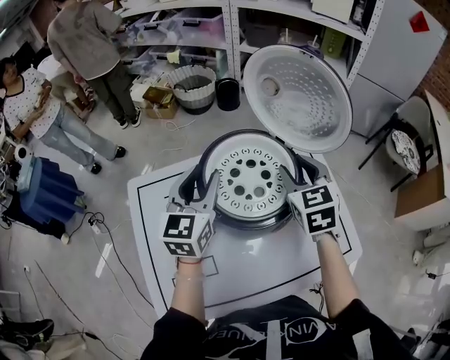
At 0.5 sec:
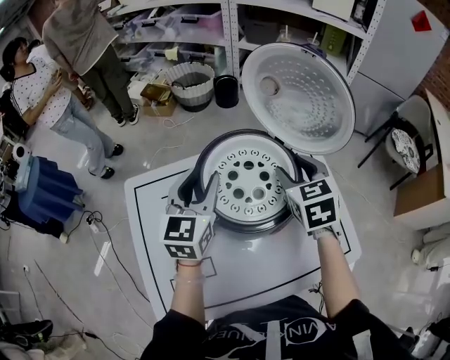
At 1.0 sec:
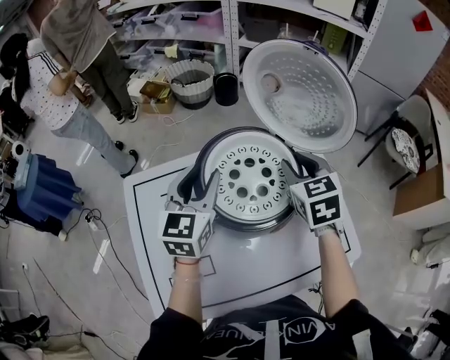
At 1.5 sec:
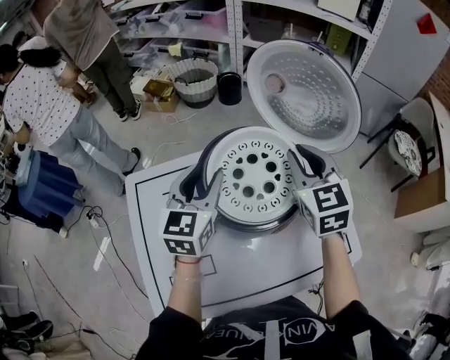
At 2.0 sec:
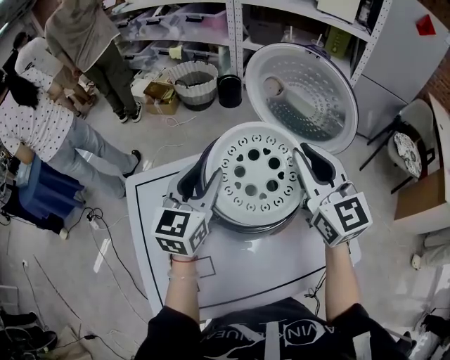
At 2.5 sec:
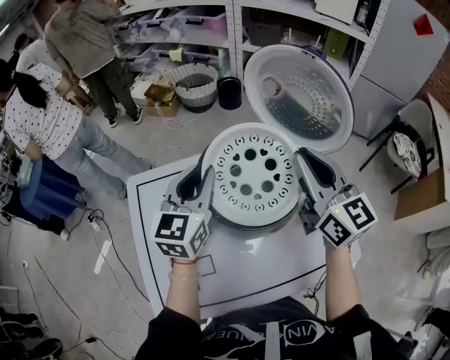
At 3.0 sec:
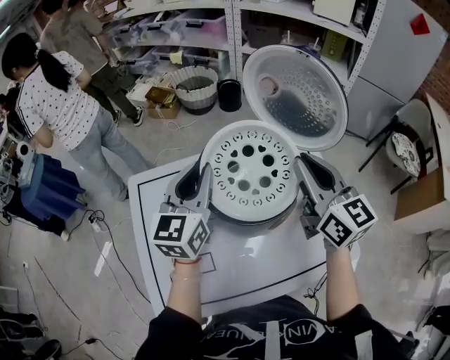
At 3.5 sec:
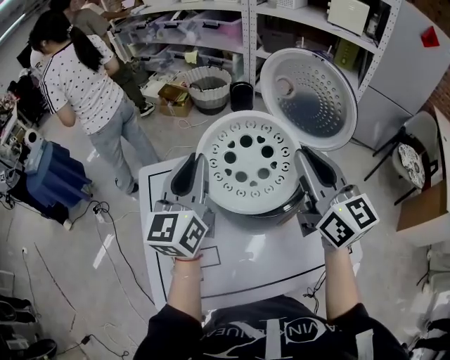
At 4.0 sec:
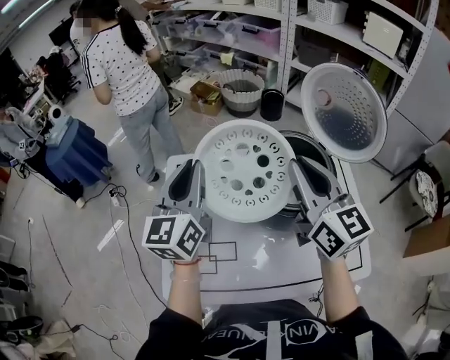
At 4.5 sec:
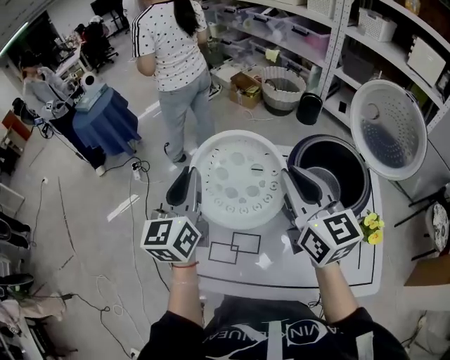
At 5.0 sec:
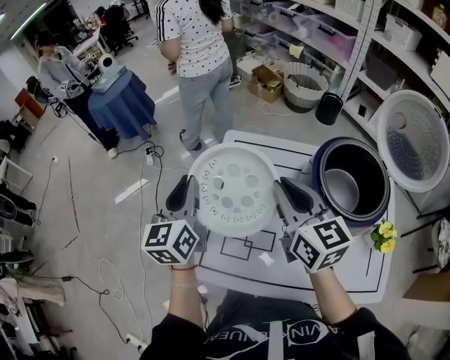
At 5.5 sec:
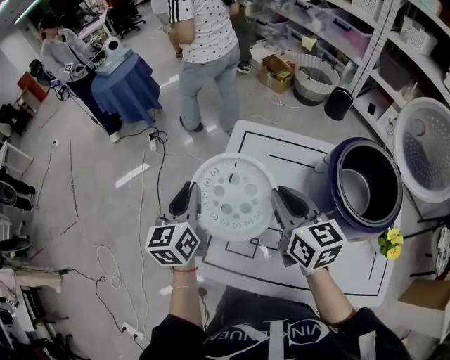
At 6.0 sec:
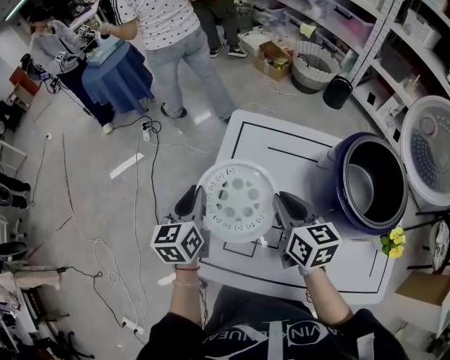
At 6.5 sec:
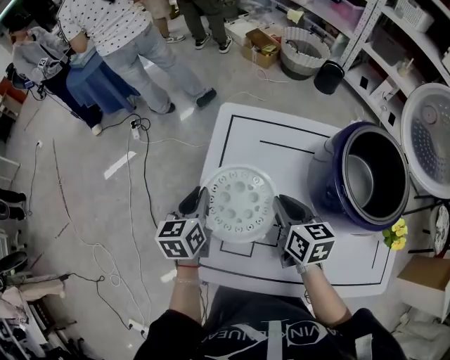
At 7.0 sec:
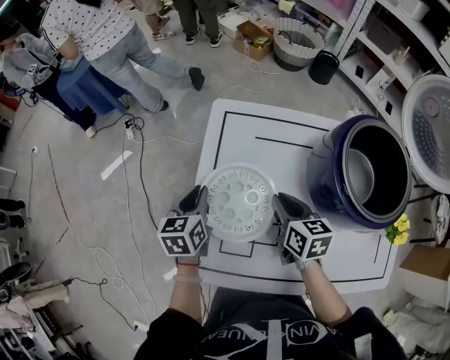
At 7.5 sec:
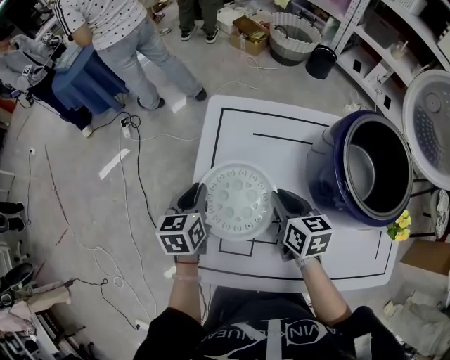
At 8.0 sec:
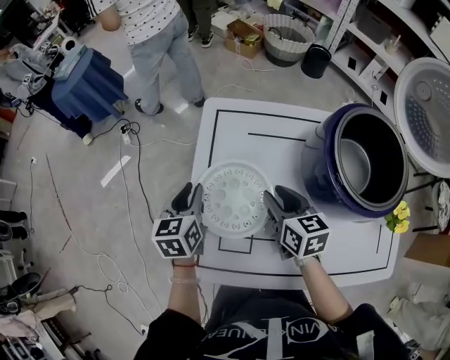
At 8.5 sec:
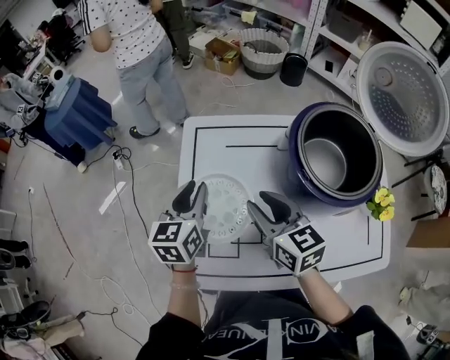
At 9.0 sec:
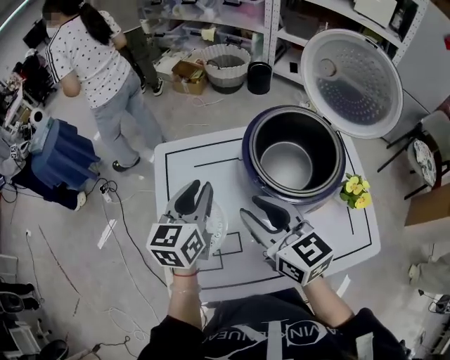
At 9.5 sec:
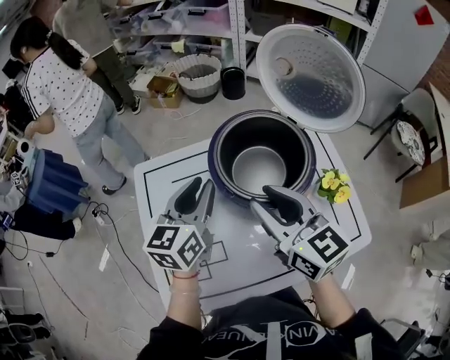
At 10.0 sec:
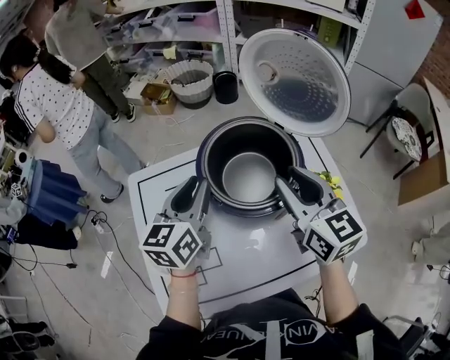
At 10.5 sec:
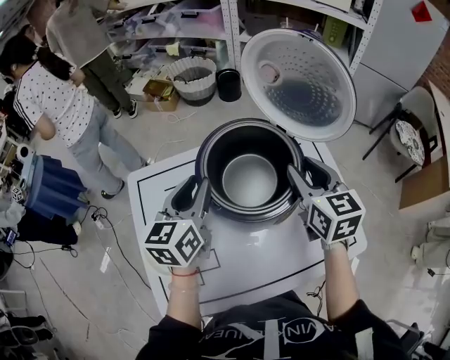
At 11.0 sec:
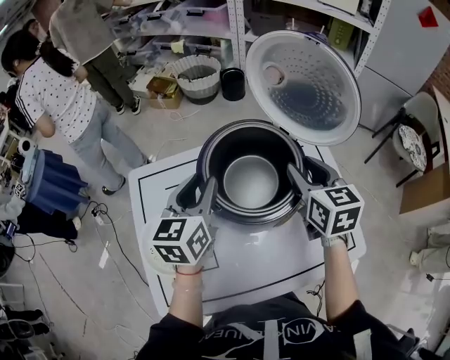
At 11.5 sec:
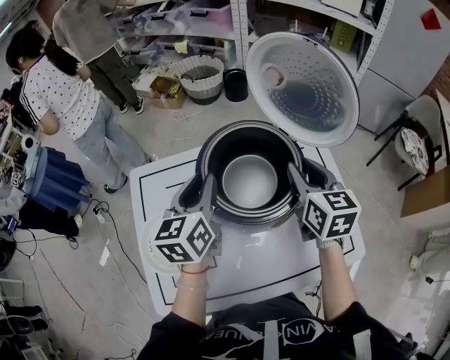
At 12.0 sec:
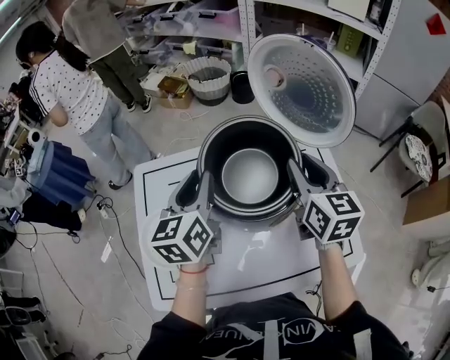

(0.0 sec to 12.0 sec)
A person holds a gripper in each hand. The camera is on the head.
0.0 sec - 2.0 sec: The right gripper moves upward, roughly 10 cm, rotates roughly 30 degrees, and closes.
2.0 sec - 4.0 sec: The right gripper goes some 15 cm to the left and backward, and rotates approximately 20 degrees. The left gripper travels to the left, upward and backward by about 20 cm, changes its angle by approximately 30 degrees, and closes up.
4.0 sec - 6.0 sec: The right gripper shifts approximately 30 cm downward and to the left, and swivels approximately 40 degrees. The left gripper moves to the left and downward, some 30 cm, and rotates some 30 degrees.
6.0 sec - 8.0 sec: The grippers both shift downward by about 5 cm. The right gripper opens its fingers.
8.0 sec - 10.0 sec: The left gripper moves about 35 cm, and changes its angle by about 40 degrees, while the right gripper moves approximately 35 cm, and changes its angle by some 30 degrees.
10.0 sec - 12.0 sec: The right gripper travels forward and to the right by about 10 cm.

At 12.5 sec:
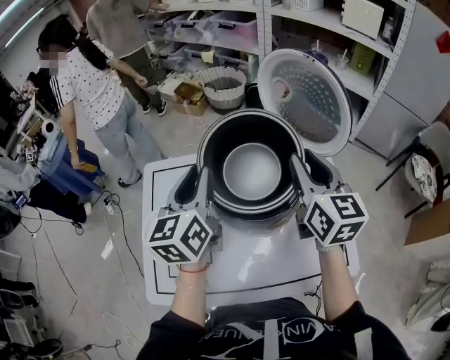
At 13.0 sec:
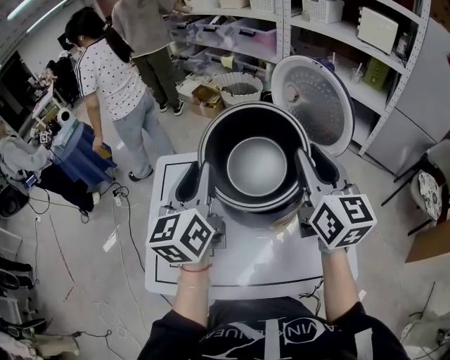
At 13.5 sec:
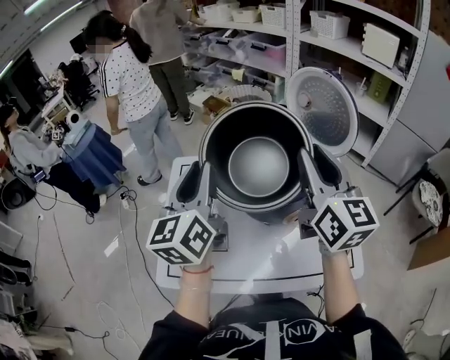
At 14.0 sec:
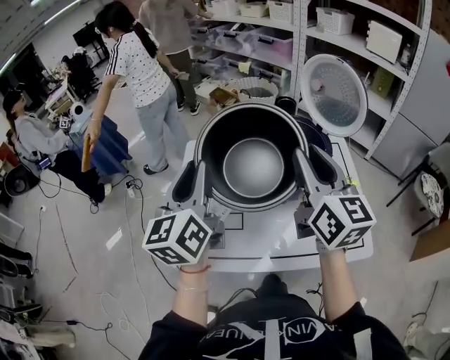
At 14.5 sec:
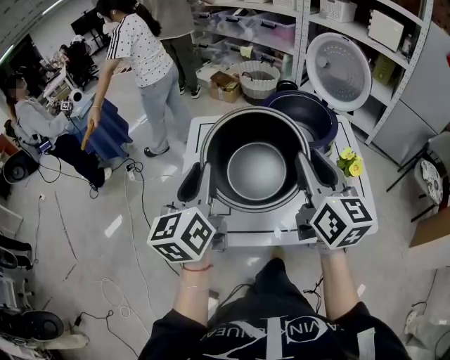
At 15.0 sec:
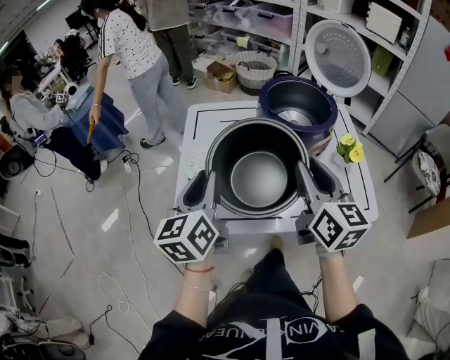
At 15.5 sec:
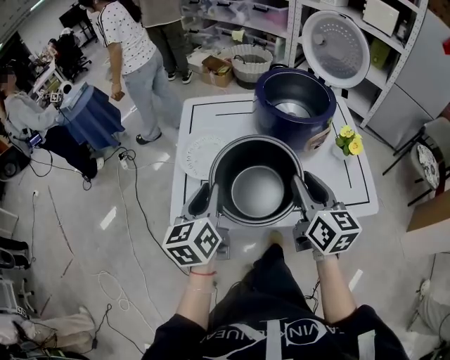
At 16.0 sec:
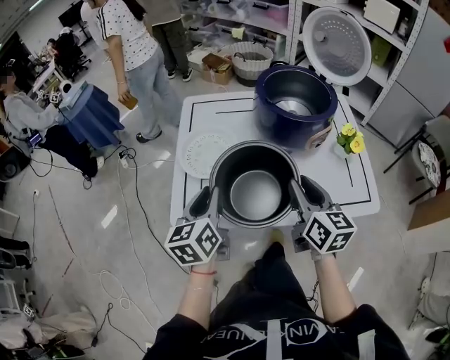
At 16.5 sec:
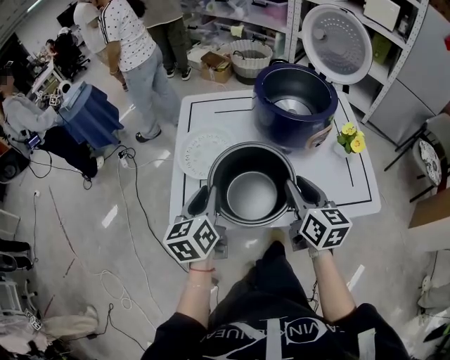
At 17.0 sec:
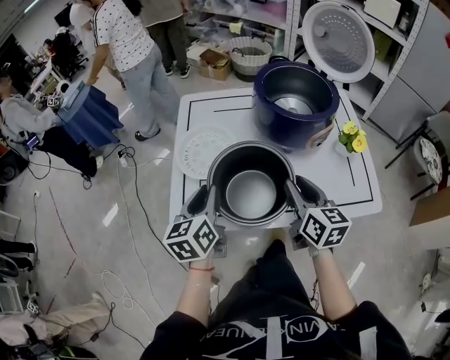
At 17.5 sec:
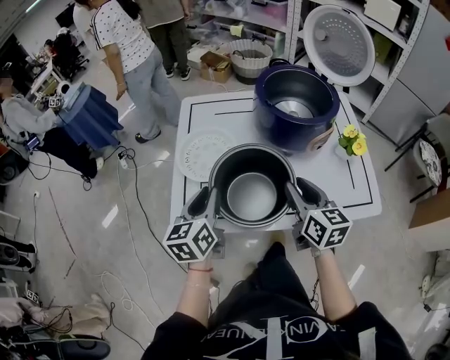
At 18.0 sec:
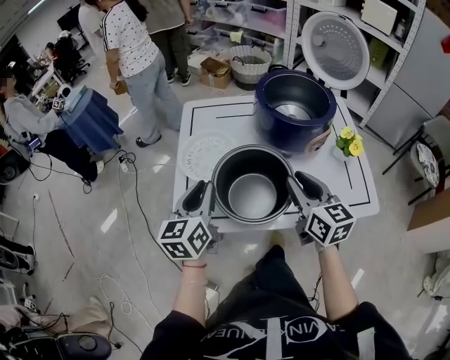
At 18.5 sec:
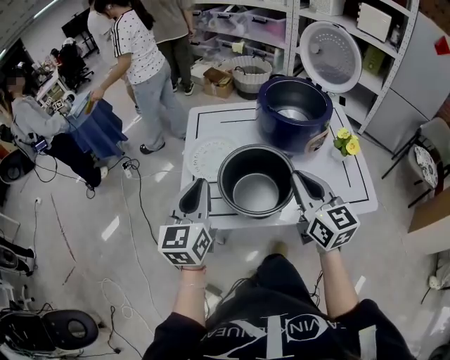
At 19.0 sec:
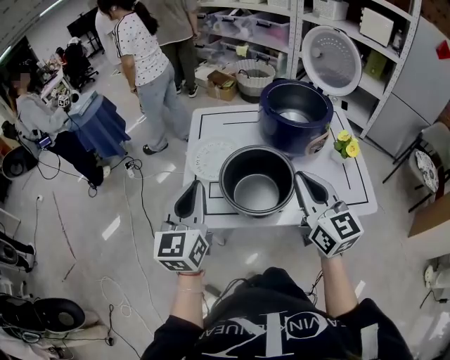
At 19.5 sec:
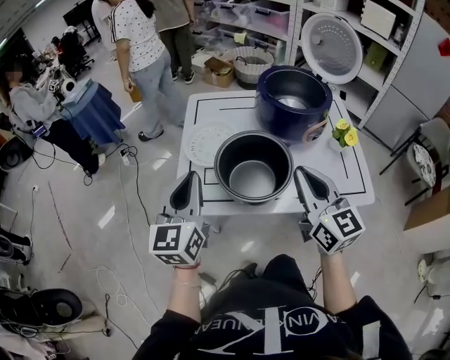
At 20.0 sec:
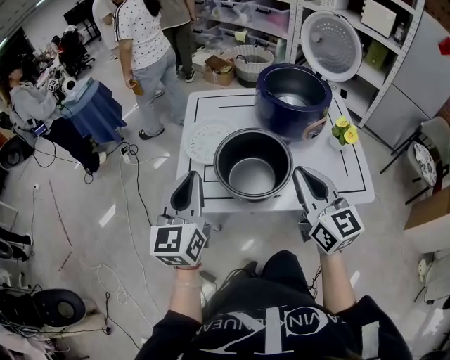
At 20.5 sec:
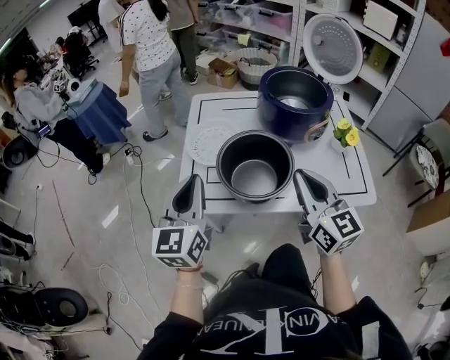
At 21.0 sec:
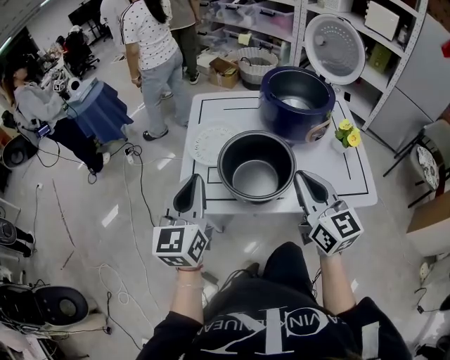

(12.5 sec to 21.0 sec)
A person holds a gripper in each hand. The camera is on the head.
12.5 sec - 14.5 sec: The grippers both shift backward and to the left by some 30 cm.
14.5 sec - 16.5 sec: The grippers both shift downward by some 15 cm.
16.5 sec - 19.0 sec: Both grippers travel together upward, about 10 cm. The right gripper turns by some 20 degrees, and closes. Meanwhile the left gripper rotates some 30 degrees.
19.0 sec - 21.0 sec: The grippers make only small movements.

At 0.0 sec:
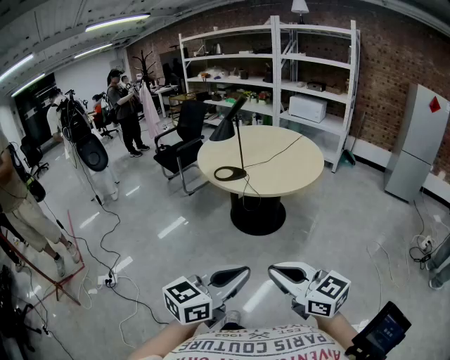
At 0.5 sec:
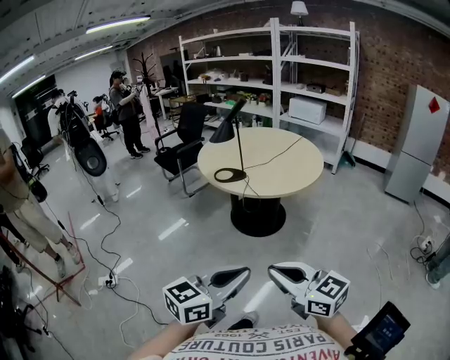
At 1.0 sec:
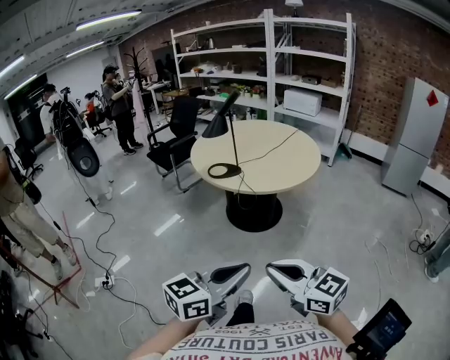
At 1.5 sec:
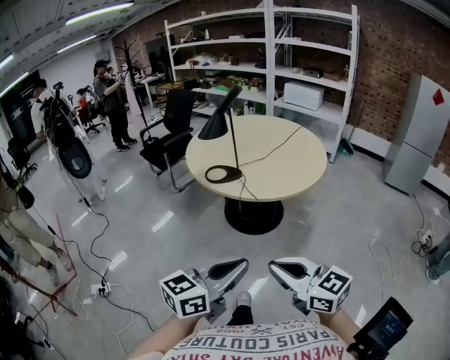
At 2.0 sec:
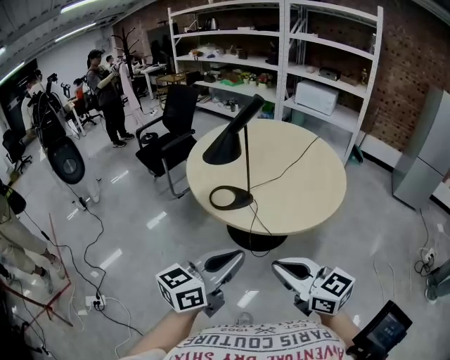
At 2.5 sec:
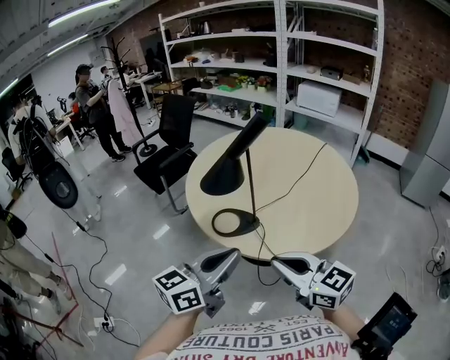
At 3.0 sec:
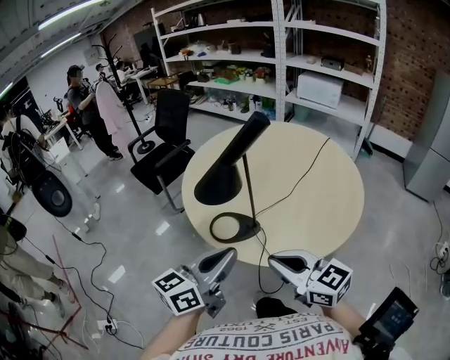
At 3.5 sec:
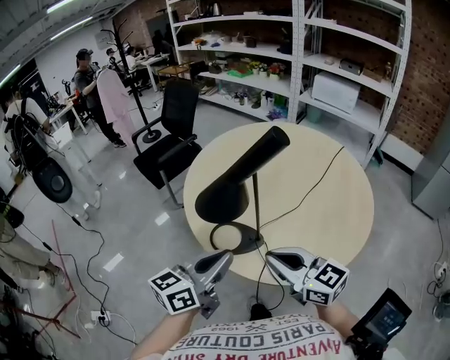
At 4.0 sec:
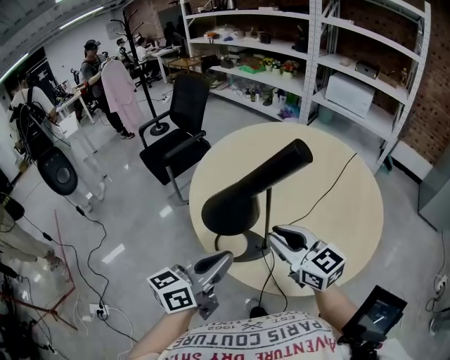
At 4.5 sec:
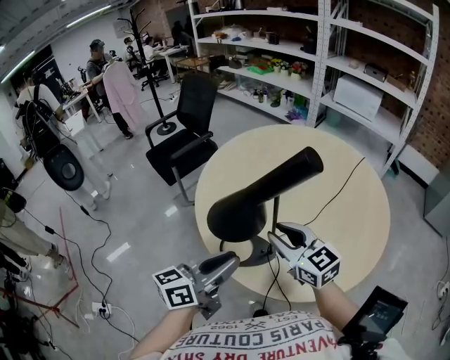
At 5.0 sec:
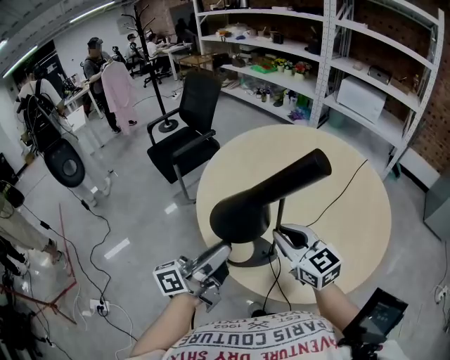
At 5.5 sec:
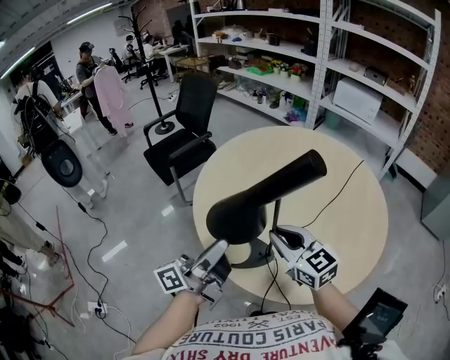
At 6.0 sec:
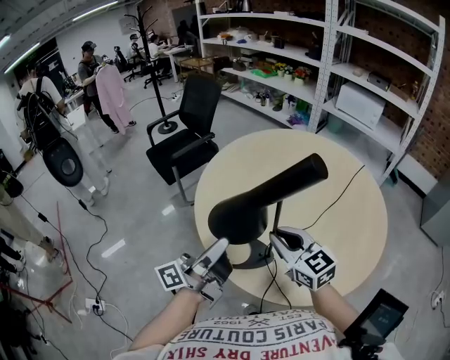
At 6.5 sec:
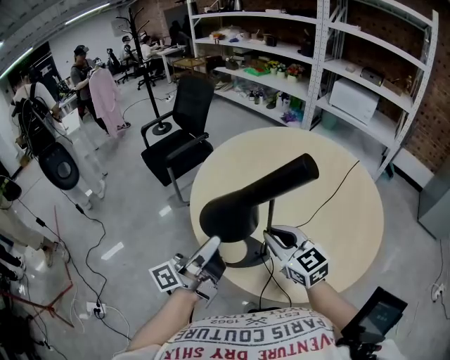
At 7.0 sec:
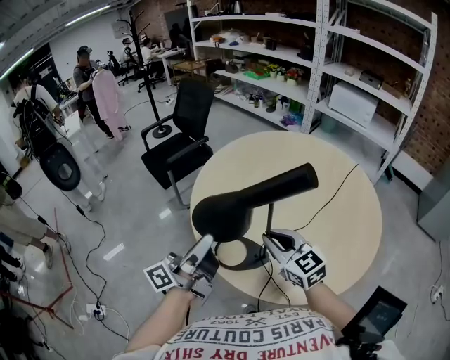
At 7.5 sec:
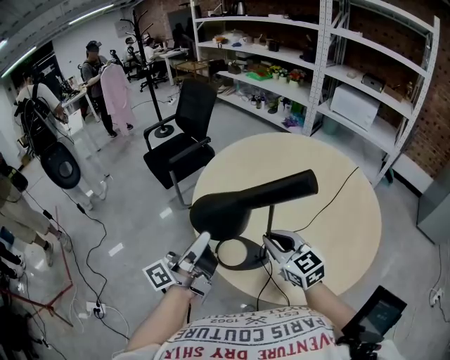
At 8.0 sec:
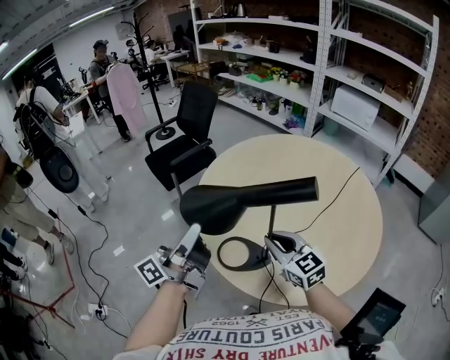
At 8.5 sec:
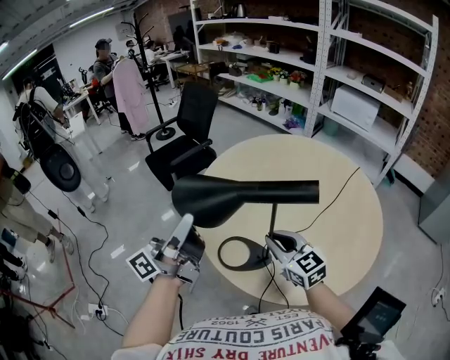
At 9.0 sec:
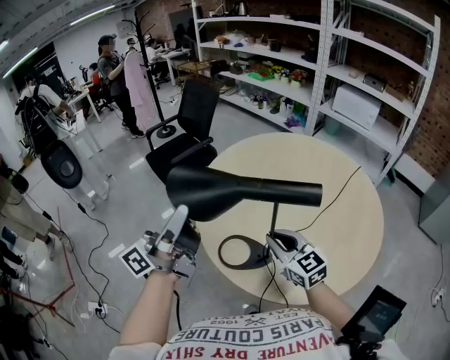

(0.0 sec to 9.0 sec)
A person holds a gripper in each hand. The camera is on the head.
0.0 sec - 2.0 sec: Both grippers move forward, roughly 35 cm.
2.0 sec - 4.5 sec: Both grippers travel together forward, about 35 cm. The right gripper opens its fingers.
4.5 sec - 7.0 sec: The left gripper moves to the left, some 5 cm, and turns by about 40 degrees.
7.0 sec - 9.0 sec: The left gripper travels upward and to the left by some 10 cm.
